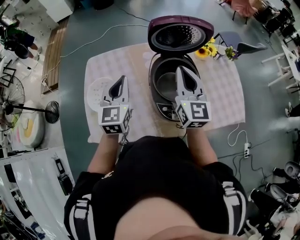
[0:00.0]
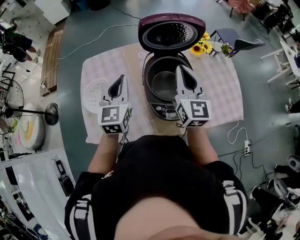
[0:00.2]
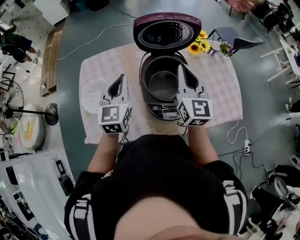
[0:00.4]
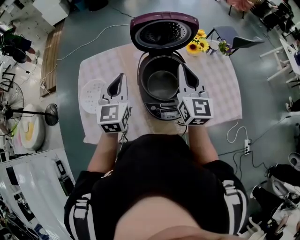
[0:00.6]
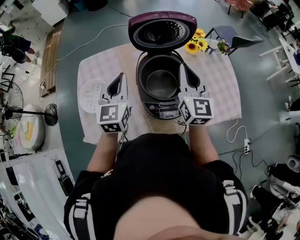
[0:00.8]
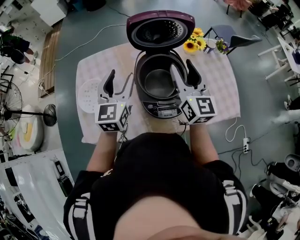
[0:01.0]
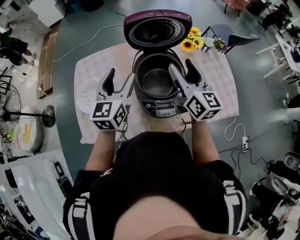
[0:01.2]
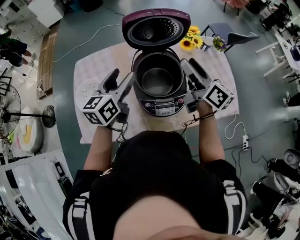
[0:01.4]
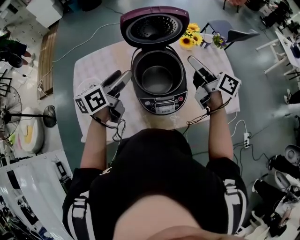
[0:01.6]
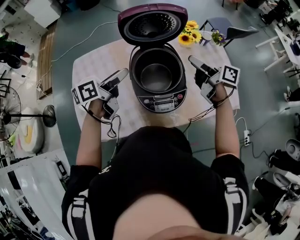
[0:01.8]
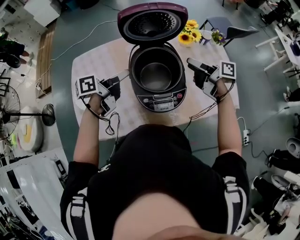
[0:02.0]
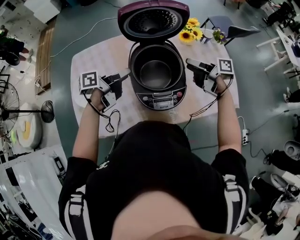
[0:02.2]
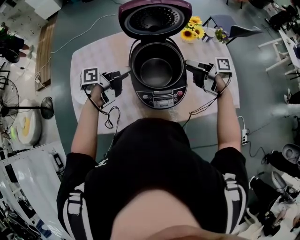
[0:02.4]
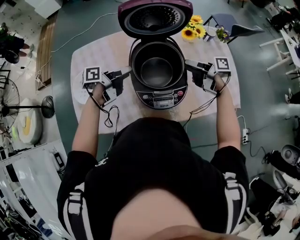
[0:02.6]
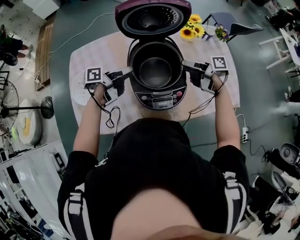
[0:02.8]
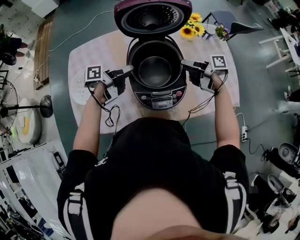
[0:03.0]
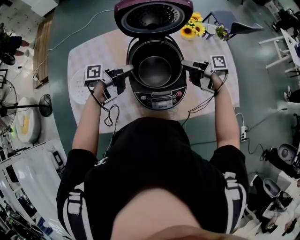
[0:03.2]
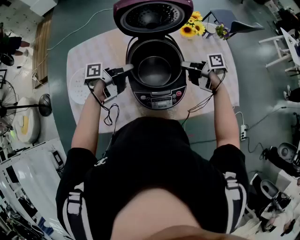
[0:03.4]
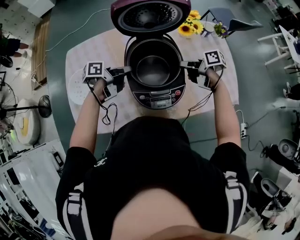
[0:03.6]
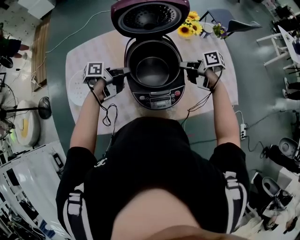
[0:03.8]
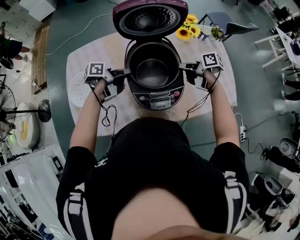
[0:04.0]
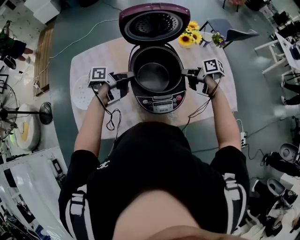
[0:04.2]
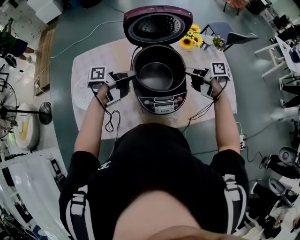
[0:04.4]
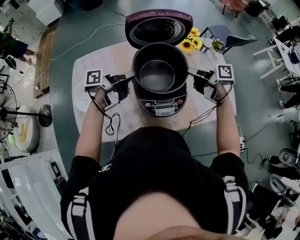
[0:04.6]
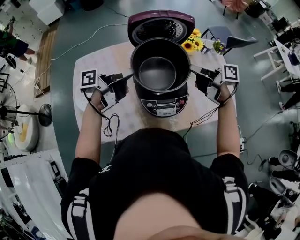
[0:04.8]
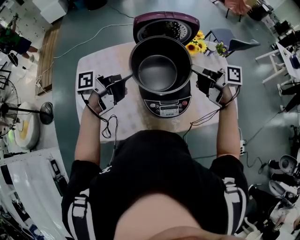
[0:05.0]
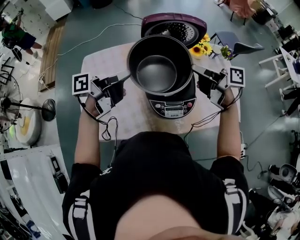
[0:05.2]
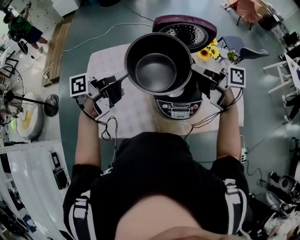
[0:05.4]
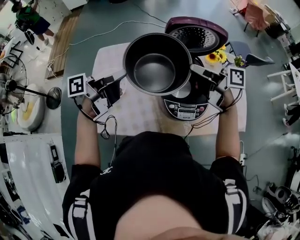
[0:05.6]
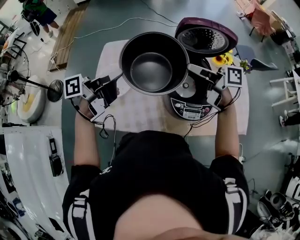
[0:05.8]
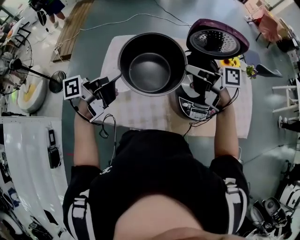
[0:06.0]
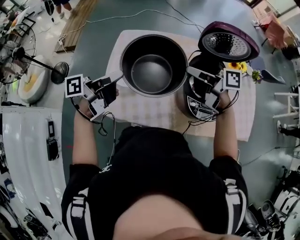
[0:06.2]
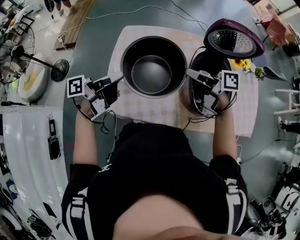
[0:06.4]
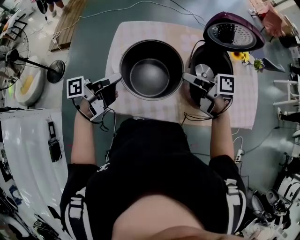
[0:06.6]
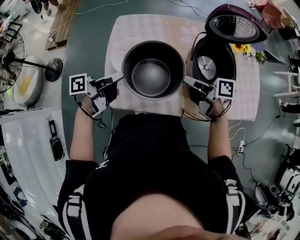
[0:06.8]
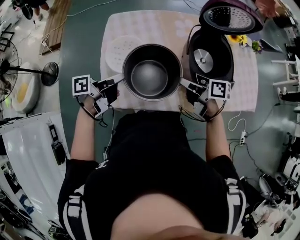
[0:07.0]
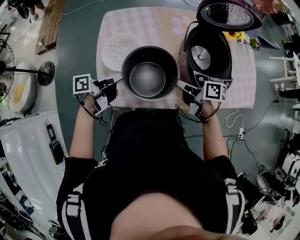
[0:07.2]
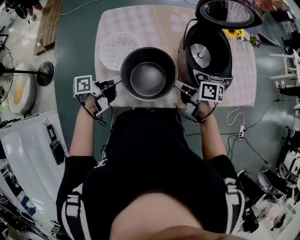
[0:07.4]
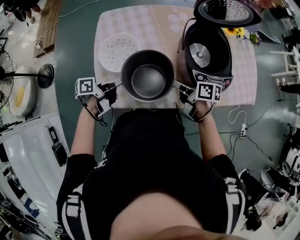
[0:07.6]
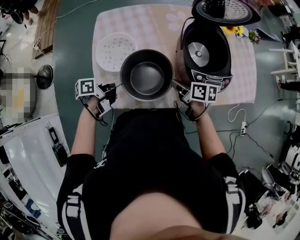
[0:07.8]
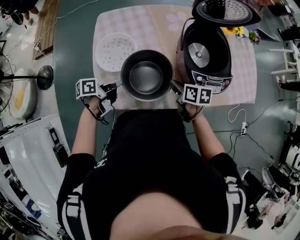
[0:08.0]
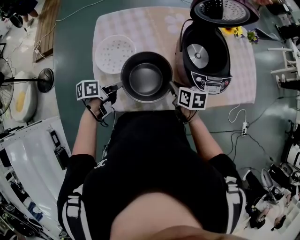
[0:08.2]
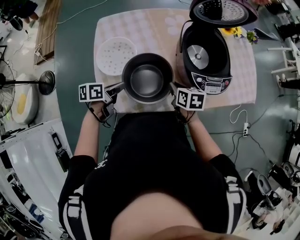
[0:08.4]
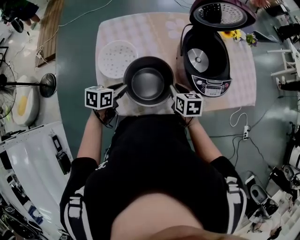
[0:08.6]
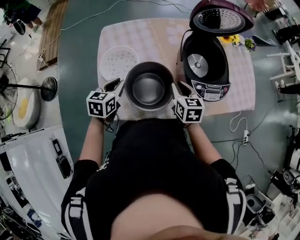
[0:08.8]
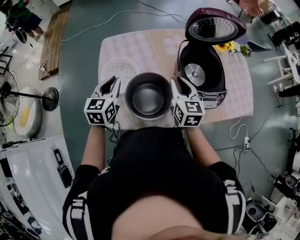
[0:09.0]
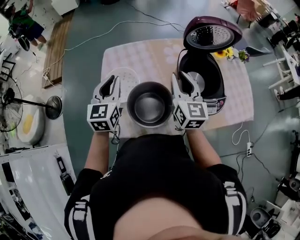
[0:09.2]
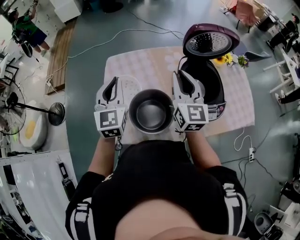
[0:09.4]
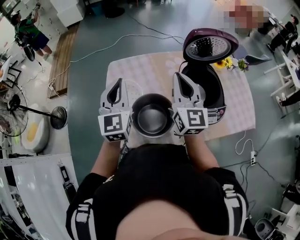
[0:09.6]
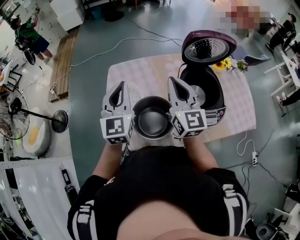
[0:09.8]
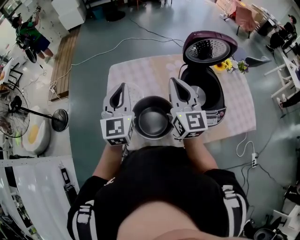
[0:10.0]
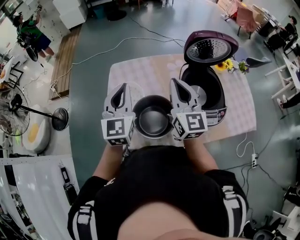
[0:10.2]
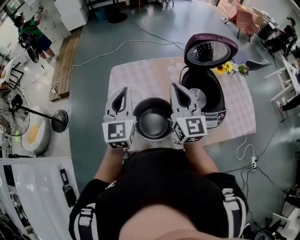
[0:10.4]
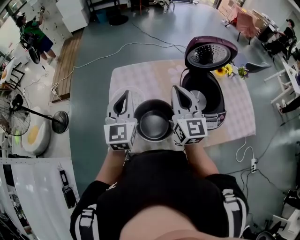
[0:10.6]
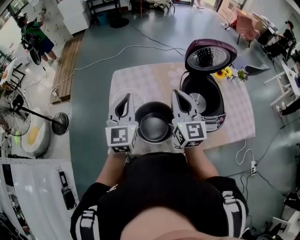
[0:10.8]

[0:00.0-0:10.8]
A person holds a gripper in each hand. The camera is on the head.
0:00.0 to 0:01.6: The right gripper is displaced to the right by about 15 cm, rolls clockwise, seen from behind, by roughly 50 degrees, and opens. The left gripper heads to the right, covering roughly 10 cm, turns by about 50 degrees, and opens up.
0:01.6 to 0:03.0: Both grippers travel together downward, roughly 15 cm. The left gripper swivels about 40 degrees, while the right gripper turns by approximately 40 degrees.
0:03.0 to 0:04.6: The two grippers go about 5 cm upward. The left gripper closes; the right gripper closes.
0:04.6 to 0:06.2: Both grippers travel together to the left, roughly 30 cm. The left gripper swivels roughly 20 degrees. Meanwhile the right gripper rotates roughly 20 degrees.
0:06.2 to 0:07.8: The right gripper shifts about 25 cm downward and backward, and swivels some 40 degrees, while the left gripper heads downward, covering approximately 25 cm, and rotates some 30 degrees.
0:07.8 to 0:09.2: The grippers both shift upward and forward by some 20 cm. The left gripper rotates around the line of its fingers by about 70 degrees, clockwise from behind. Meanwhile the right gripper tips its fingers upward by roughly 30 degrees.
0:09.2 to 0:10.8: The two grippers go approximately 5 cm upward.

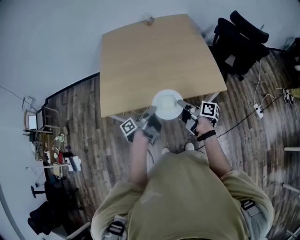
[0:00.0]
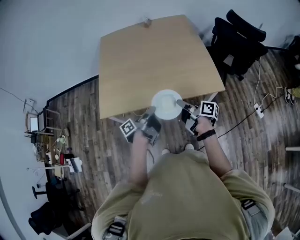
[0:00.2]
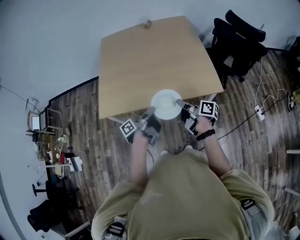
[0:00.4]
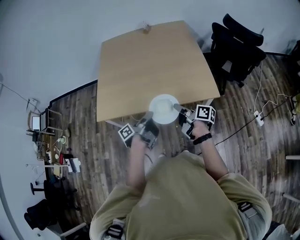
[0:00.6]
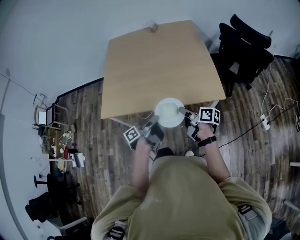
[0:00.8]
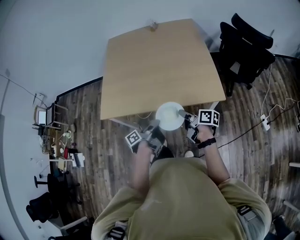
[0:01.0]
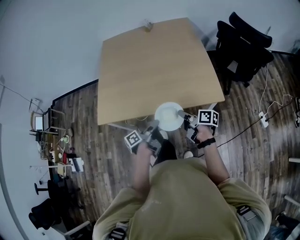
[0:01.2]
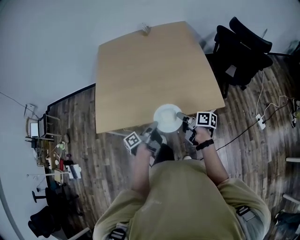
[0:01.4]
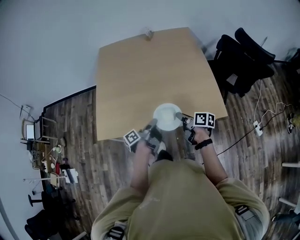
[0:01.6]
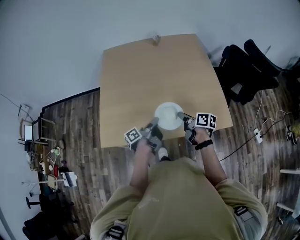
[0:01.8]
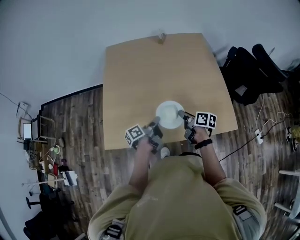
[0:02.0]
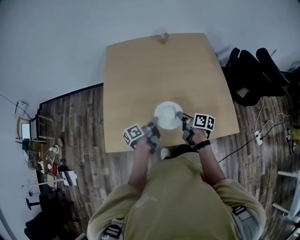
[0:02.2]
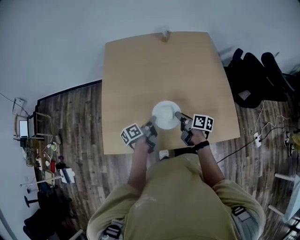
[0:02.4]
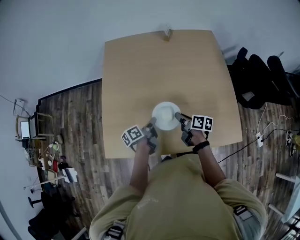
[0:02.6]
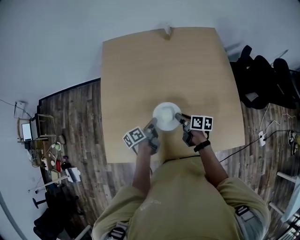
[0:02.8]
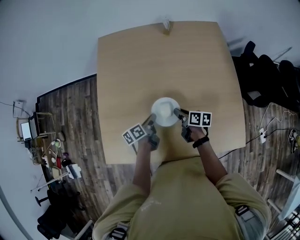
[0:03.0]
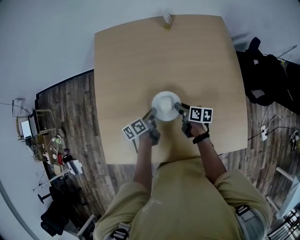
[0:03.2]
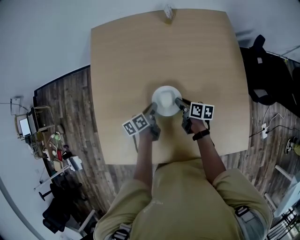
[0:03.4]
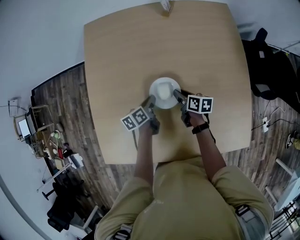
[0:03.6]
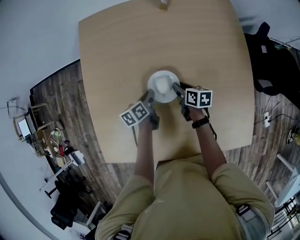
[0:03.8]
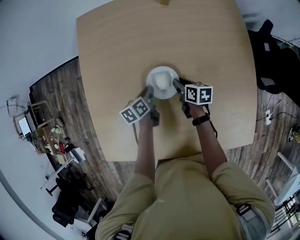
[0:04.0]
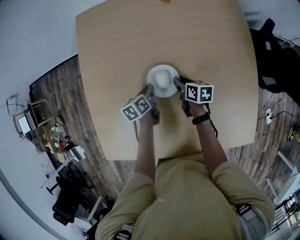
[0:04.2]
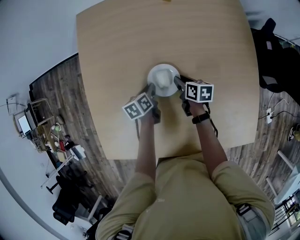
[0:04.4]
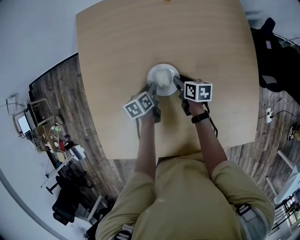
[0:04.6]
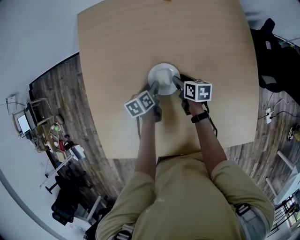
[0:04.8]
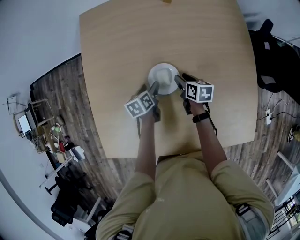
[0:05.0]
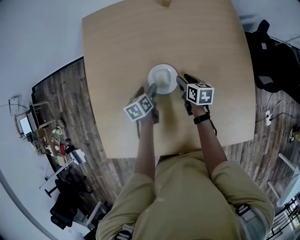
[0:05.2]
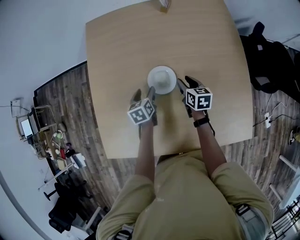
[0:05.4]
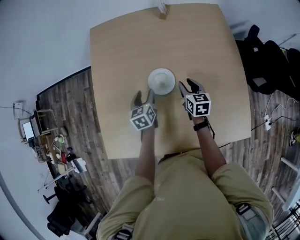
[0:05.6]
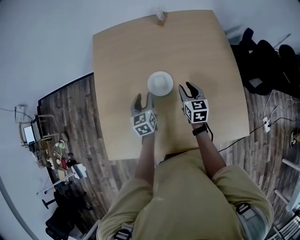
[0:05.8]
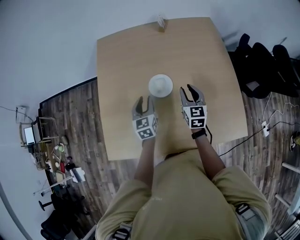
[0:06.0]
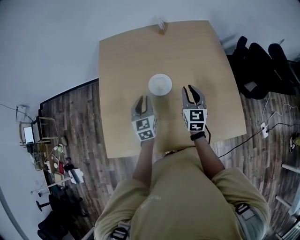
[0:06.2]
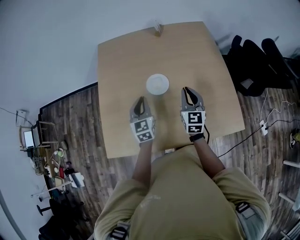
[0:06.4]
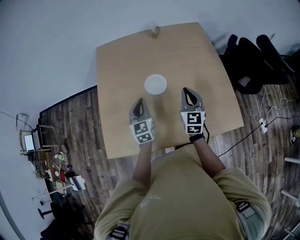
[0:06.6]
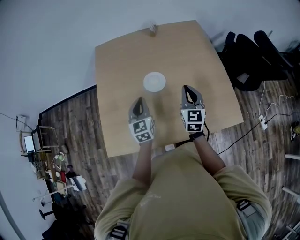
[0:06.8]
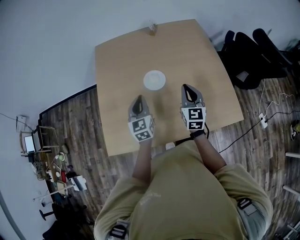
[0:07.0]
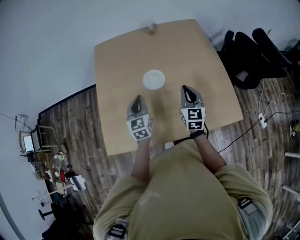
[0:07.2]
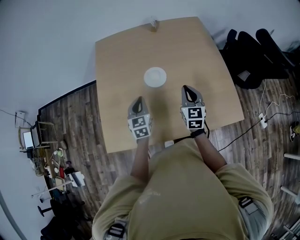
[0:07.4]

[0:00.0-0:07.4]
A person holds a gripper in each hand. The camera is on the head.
0:00.0 to 0:01.4: The right gripper moves to the right, downward and forward, about 10 cm; the left gripper moves to the right and downward, approximately 10 cm.
0:01.4 to 0:03.0: The grippers both shift forward by about 35 cm. The right gripper turns by about 20 degrees, while the left gripper changes its angle by roughly 30 degrees.
0:03.0 to 0:04.4: The two grippers go about 15 cm forward and downward. The left gripper swivels about 20 degrees.
0:04.4 to 0:06.0: Both grippers travel together upward and backward, roughly 25 cm. The left gripper rotates roughly 50 degrees, and opens and closes again. Meanwhile the right gripper turns by roughly 50 degrees.
0:06.0 to 0:07.4: The grippers both shift backward by approximately 10 cm. The right gripper closes, while the left gripper closes its fingers.

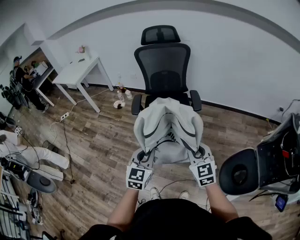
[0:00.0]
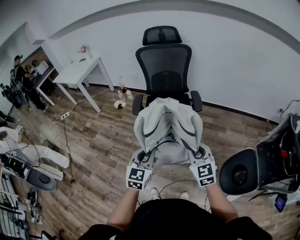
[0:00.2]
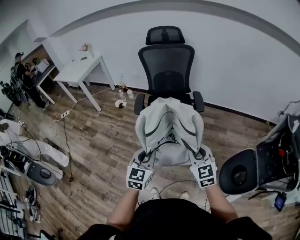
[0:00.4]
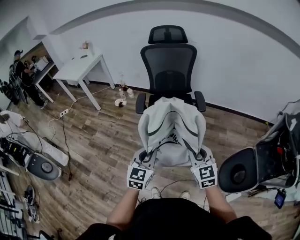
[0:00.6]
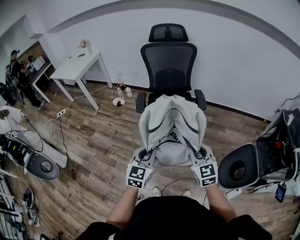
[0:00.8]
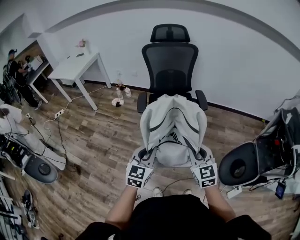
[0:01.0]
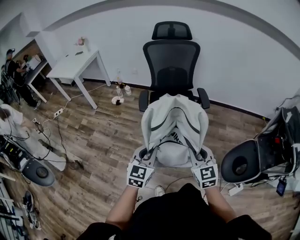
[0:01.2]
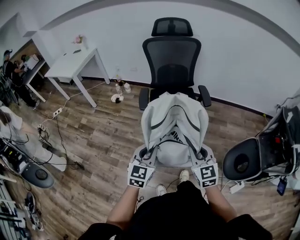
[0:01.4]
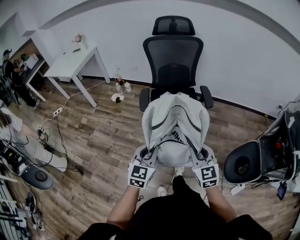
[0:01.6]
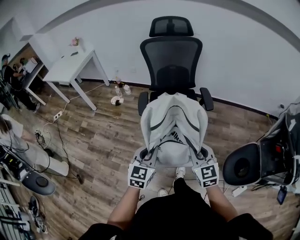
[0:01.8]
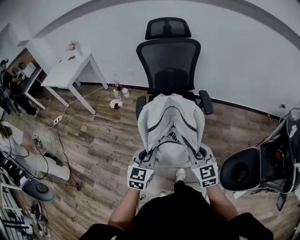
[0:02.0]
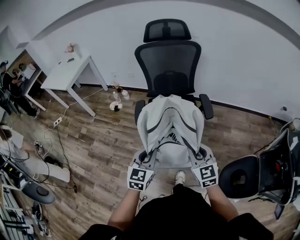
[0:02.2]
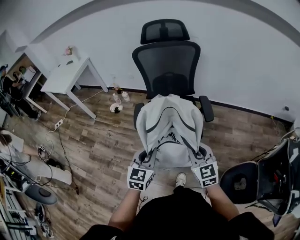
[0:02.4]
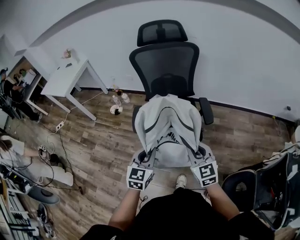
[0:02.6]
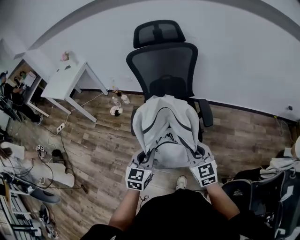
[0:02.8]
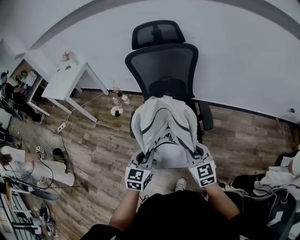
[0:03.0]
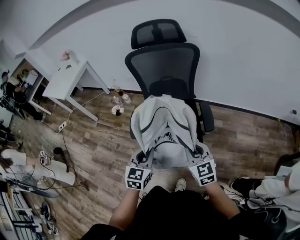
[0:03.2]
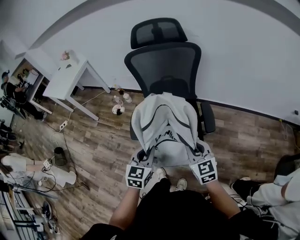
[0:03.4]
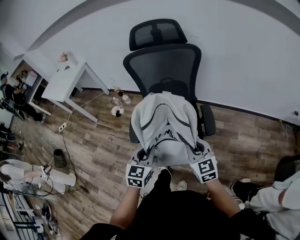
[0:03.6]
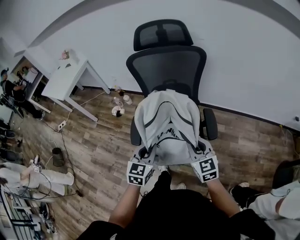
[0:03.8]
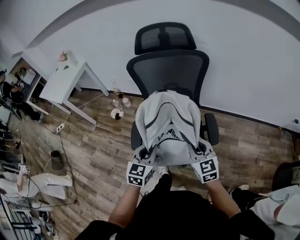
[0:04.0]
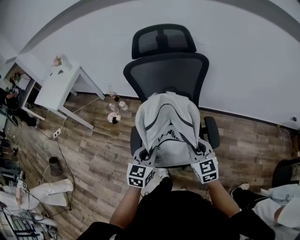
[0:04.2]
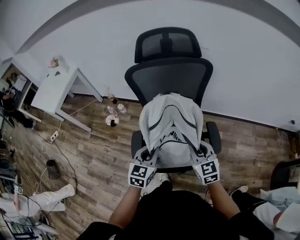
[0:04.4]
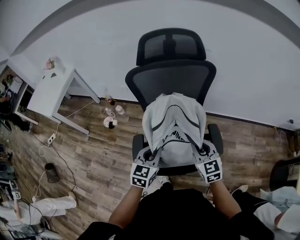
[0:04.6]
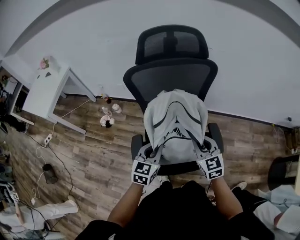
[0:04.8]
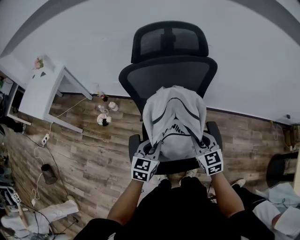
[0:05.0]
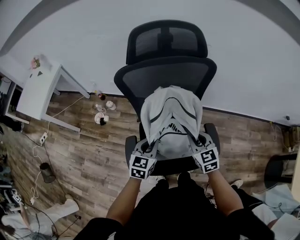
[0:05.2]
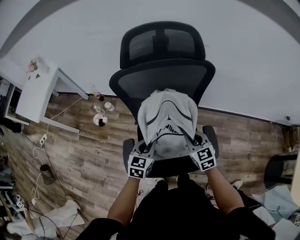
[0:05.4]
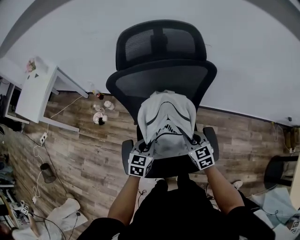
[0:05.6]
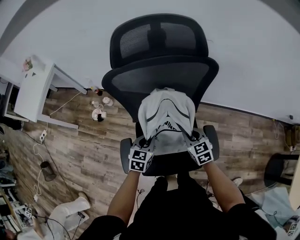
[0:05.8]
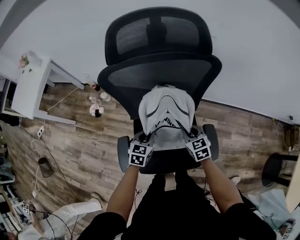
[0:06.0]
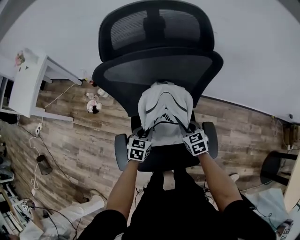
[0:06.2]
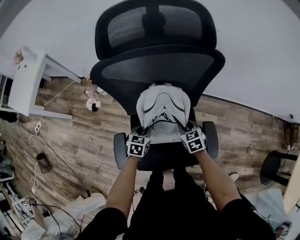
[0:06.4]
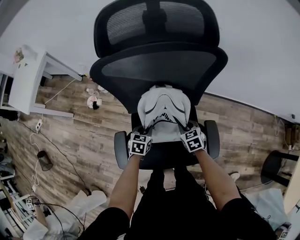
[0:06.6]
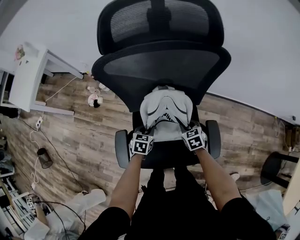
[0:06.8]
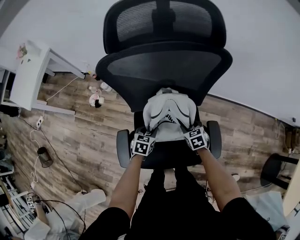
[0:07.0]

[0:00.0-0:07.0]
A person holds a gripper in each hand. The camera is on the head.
0:00.0 to 0:01.4: Both grippers move to the left, about 10 cm.
0:01.4 to 0:02.8: Both grippers travel together forward, roughly 25 cm.
0:02.8 to 0:04.2: The two grippers go approximately 20 cm forward.
0:04.2 to 0:05.6: Both grippers move forward and downward, approximately 20 cm.
0:05.6 to 0:07.0: Both grippers travel together downward, some 15 cm. The right gripper swivels approximately 20 degrees, and opens.
